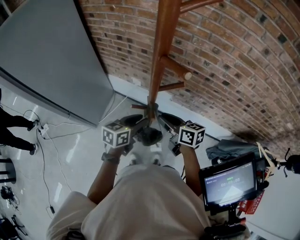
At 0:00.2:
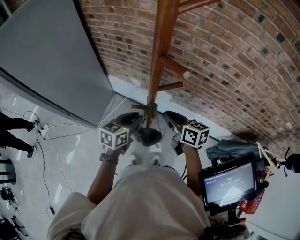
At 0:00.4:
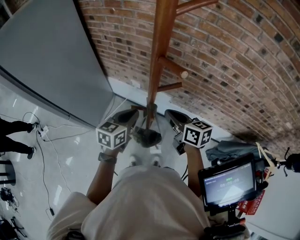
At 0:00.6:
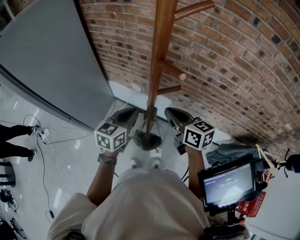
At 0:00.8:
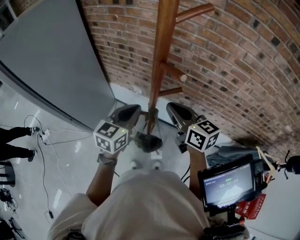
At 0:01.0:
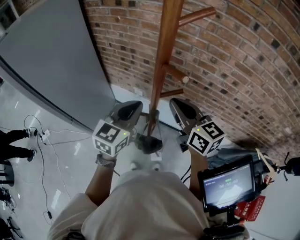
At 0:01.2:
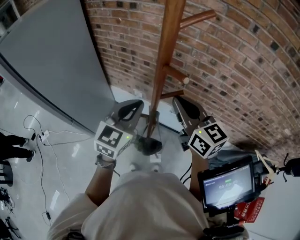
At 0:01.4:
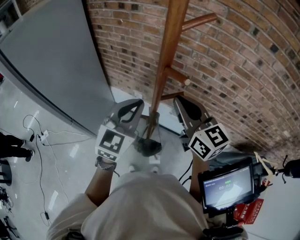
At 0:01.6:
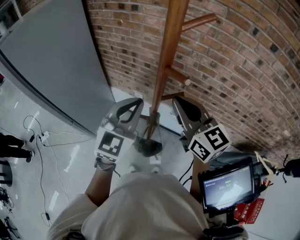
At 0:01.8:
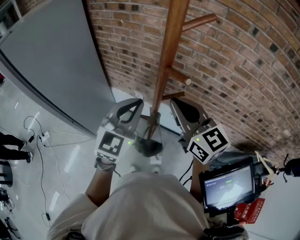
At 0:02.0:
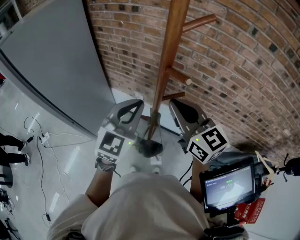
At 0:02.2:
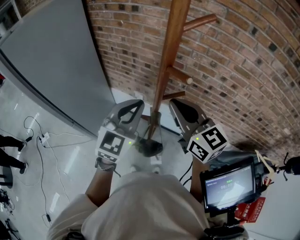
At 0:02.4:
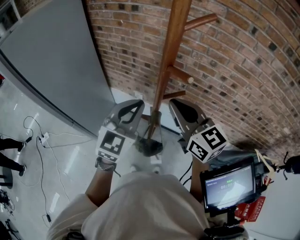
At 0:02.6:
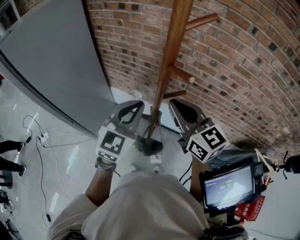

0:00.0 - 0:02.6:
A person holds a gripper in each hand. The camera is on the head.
0:00.0 - 0:01.2: The grippers both shift upward by roughly 20 cm. The right gripper changes its angle by about 40 degrees, and closes up, while the left gripper changes its angle by approximately 40 degrees, and closes its fingers.
0:01.2 - 0:02.6: The grippers make only small movements.

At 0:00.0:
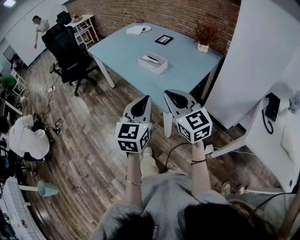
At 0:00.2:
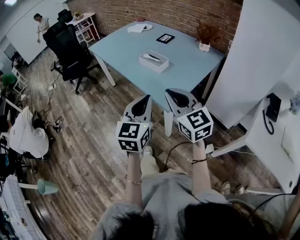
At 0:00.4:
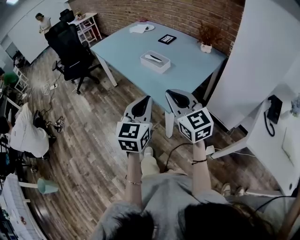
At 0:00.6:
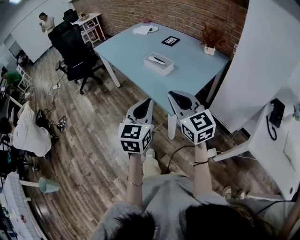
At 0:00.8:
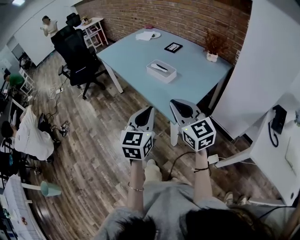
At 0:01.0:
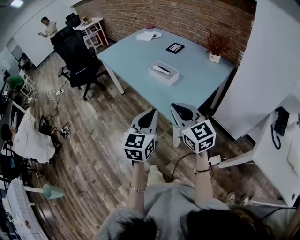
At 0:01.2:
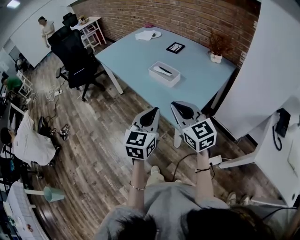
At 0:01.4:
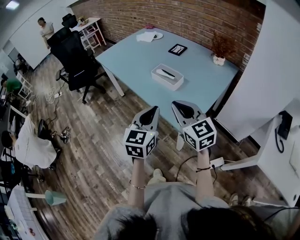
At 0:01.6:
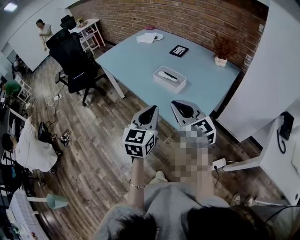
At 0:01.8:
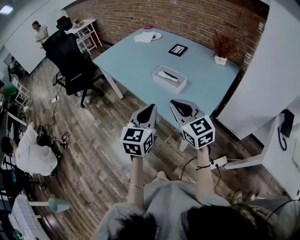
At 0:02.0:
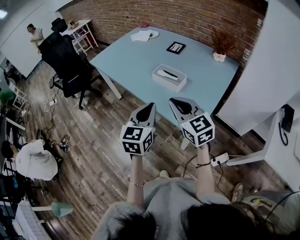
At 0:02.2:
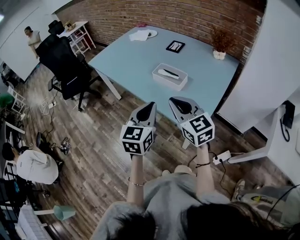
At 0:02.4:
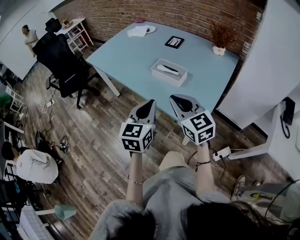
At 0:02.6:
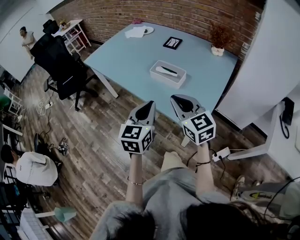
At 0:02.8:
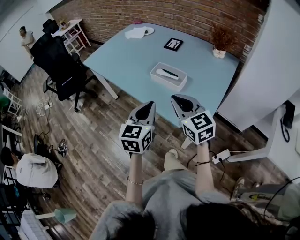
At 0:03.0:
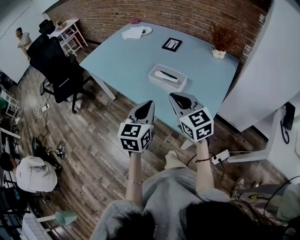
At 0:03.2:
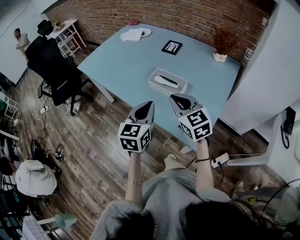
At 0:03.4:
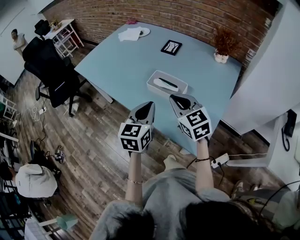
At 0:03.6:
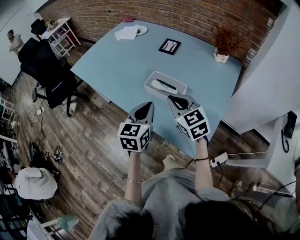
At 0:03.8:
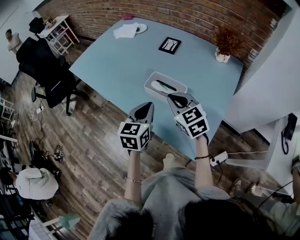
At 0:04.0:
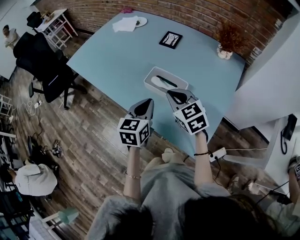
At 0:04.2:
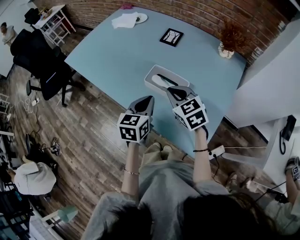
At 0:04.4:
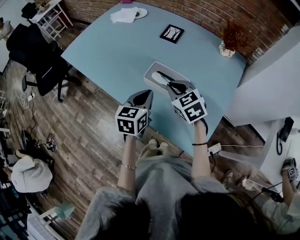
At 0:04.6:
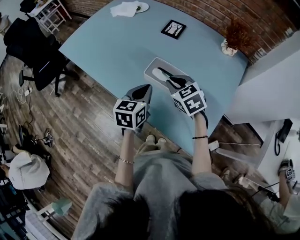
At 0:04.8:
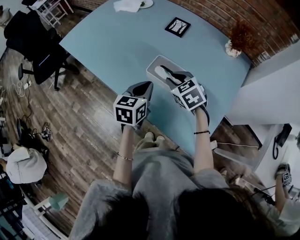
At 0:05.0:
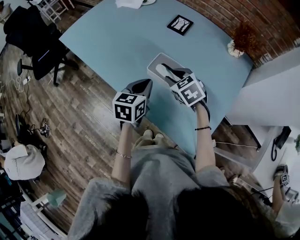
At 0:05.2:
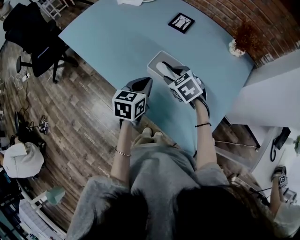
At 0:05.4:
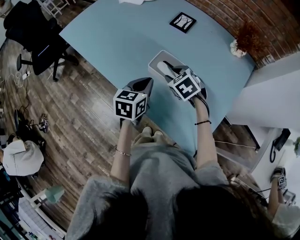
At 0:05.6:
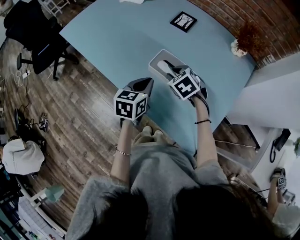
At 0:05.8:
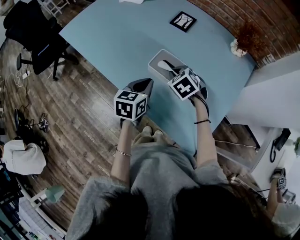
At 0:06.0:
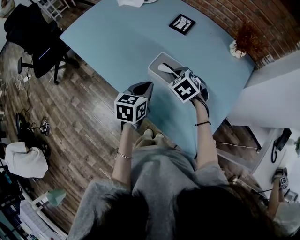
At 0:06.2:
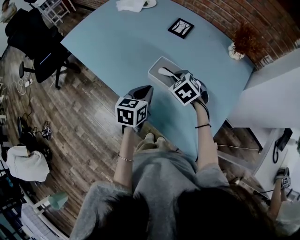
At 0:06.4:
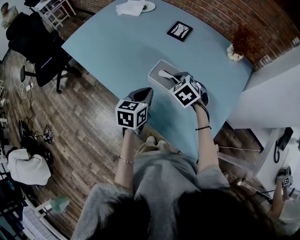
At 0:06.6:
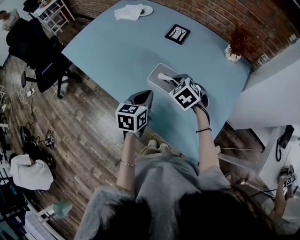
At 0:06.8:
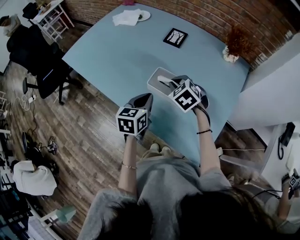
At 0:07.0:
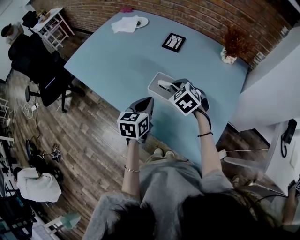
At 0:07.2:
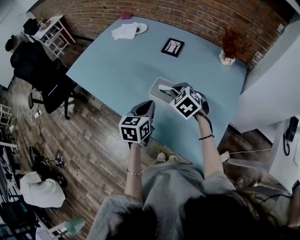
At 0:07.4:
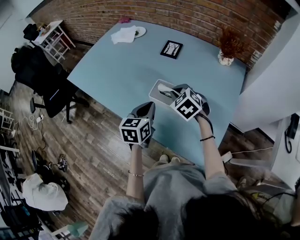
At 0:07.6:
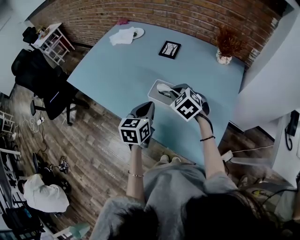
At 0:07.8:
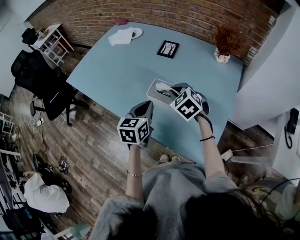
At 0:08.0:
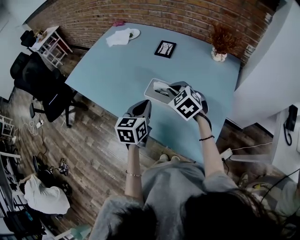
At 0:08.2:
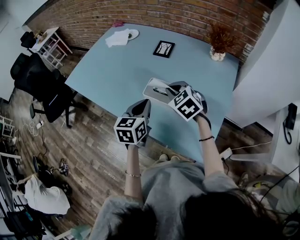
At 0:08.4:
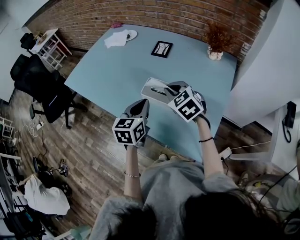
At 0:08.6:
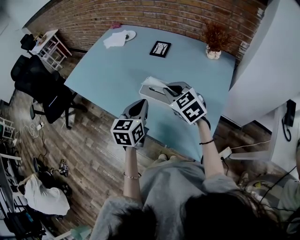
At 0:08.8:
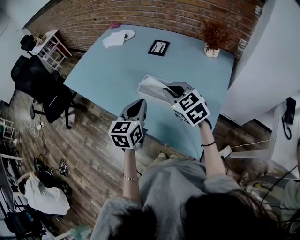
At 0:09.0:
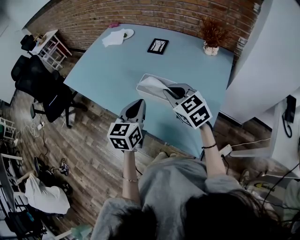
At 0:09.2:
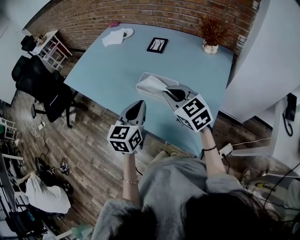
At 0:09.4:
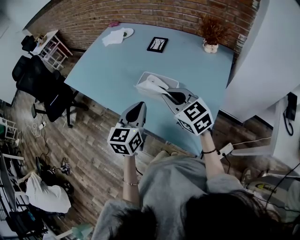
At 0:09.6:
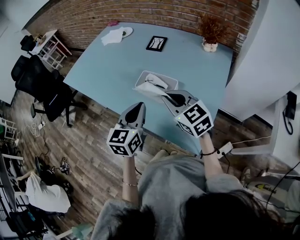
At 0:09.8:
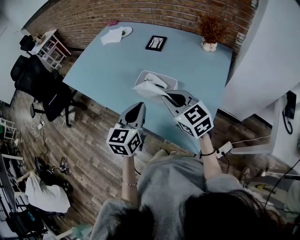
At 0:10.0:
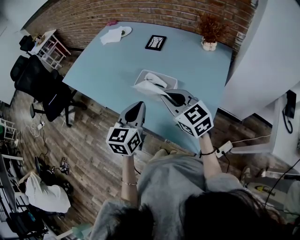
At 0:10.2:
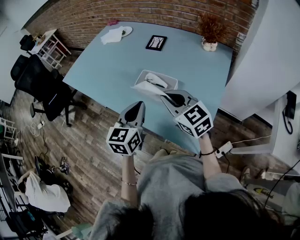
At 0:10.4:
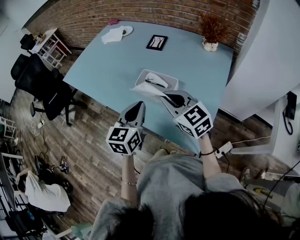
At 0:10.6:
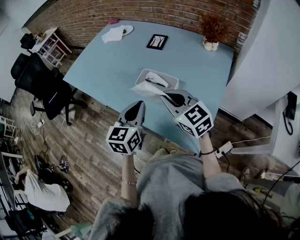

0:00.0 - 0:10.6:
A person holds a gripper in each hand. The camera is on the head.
0:00.0 - 0:01.6: Both grippers travel together forward, about 15 cm.
0:01.6 - 0:03.0: The two grippers go roughly 10 cm forward.
0:03.0 - 0:04.6: The grippers both shift forward and downward by about 20 cm. The right gripper swivels approximately 30 degrees.
0:04.6 - 0:06.0: The right gripper moves downward, some 5 cm, and opens, then closes once more.
0:06.0 - 0:07.6: The two grippers go approximately 5 cm upward.
0:07.6 - 0:09.0: The right gripper travels backward and upward by about 10 cm, and swivels roughly 20 degrees. Meanwhile the left gripper travels backward by some 5 cm.
0:09.0 - 0:10.6: There are only small adjustments of the grippers.

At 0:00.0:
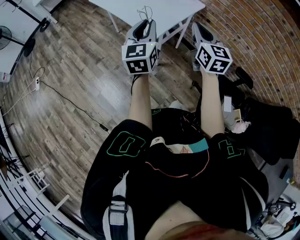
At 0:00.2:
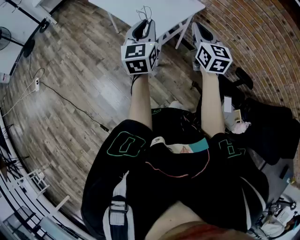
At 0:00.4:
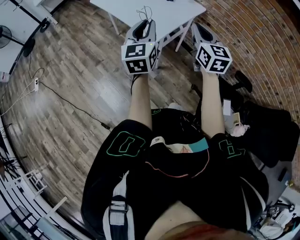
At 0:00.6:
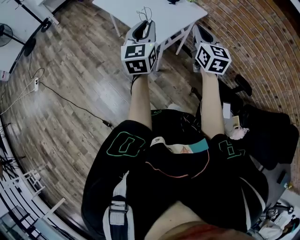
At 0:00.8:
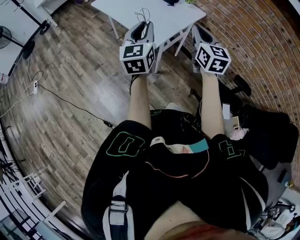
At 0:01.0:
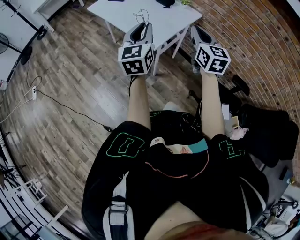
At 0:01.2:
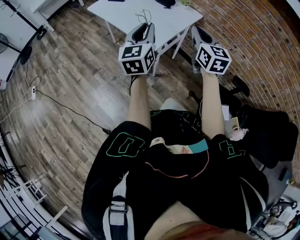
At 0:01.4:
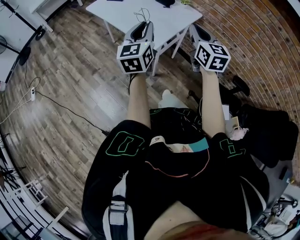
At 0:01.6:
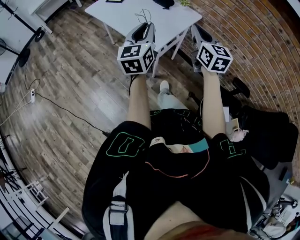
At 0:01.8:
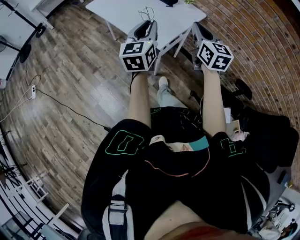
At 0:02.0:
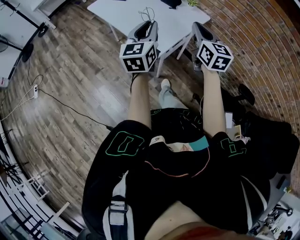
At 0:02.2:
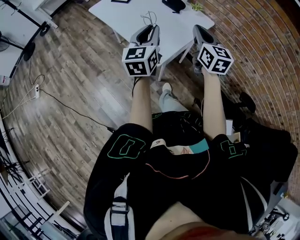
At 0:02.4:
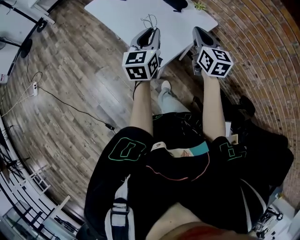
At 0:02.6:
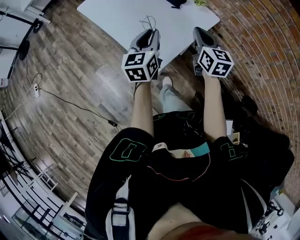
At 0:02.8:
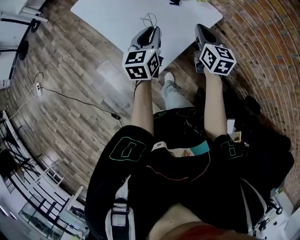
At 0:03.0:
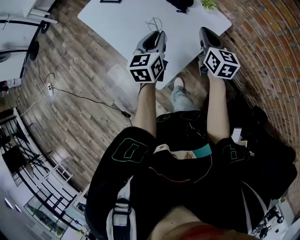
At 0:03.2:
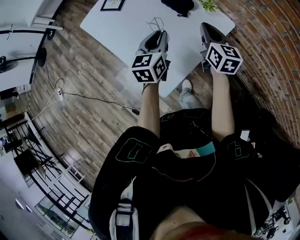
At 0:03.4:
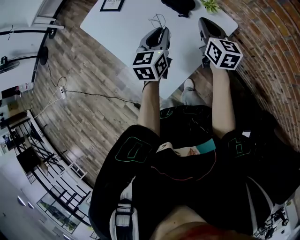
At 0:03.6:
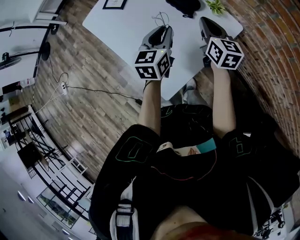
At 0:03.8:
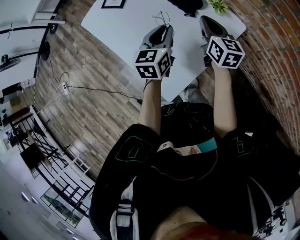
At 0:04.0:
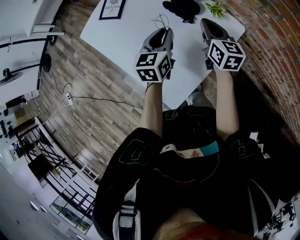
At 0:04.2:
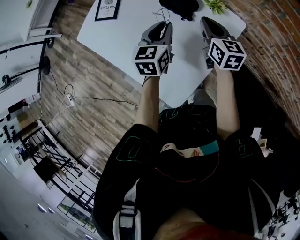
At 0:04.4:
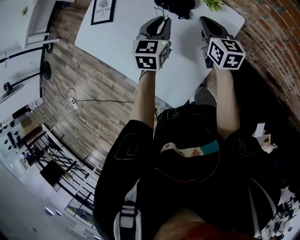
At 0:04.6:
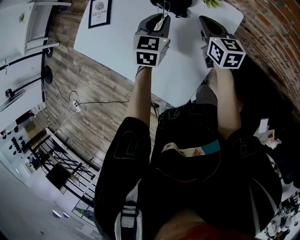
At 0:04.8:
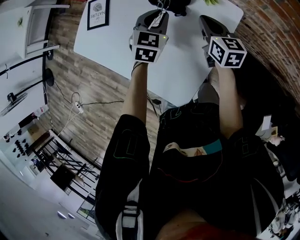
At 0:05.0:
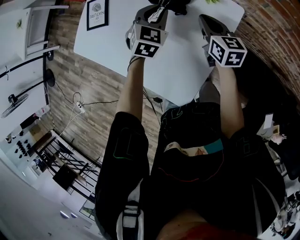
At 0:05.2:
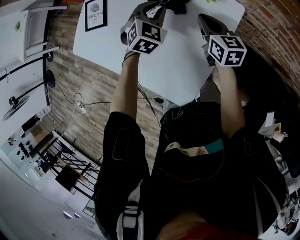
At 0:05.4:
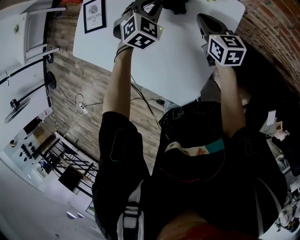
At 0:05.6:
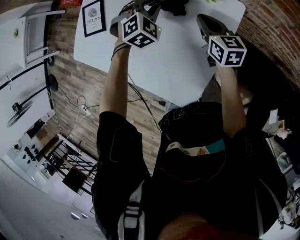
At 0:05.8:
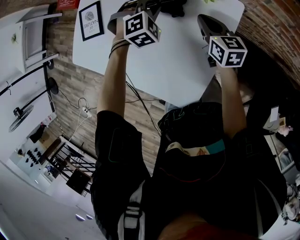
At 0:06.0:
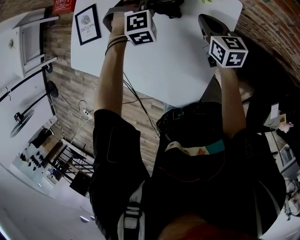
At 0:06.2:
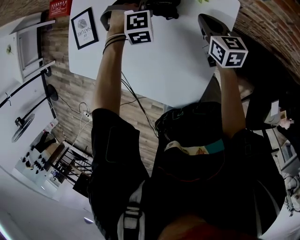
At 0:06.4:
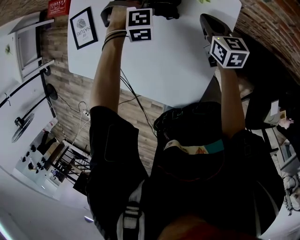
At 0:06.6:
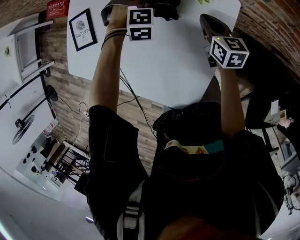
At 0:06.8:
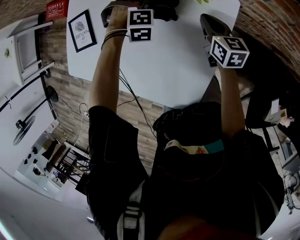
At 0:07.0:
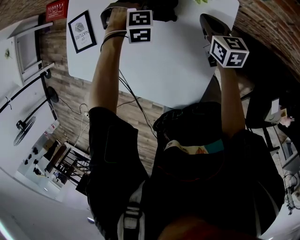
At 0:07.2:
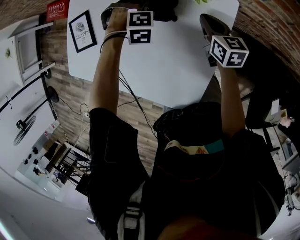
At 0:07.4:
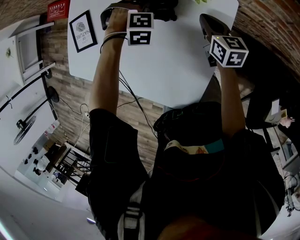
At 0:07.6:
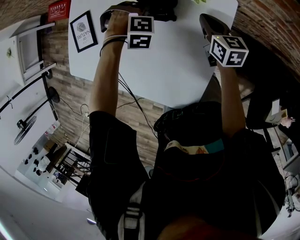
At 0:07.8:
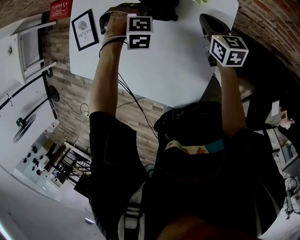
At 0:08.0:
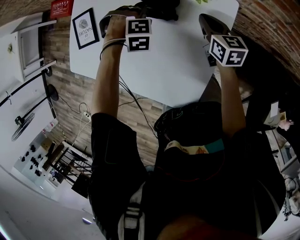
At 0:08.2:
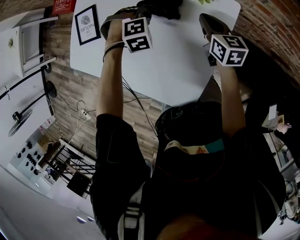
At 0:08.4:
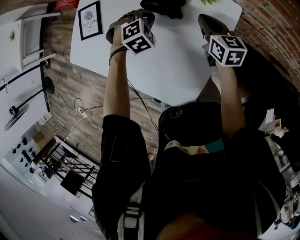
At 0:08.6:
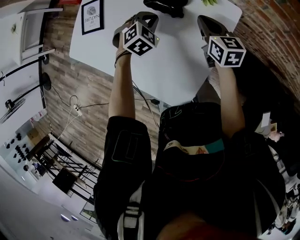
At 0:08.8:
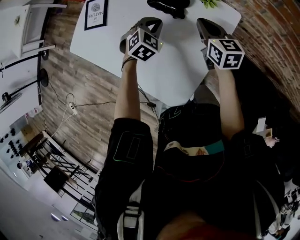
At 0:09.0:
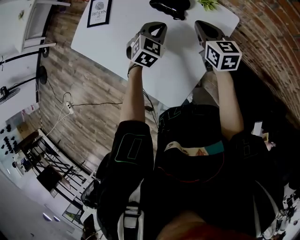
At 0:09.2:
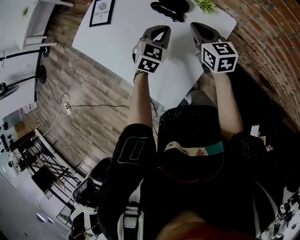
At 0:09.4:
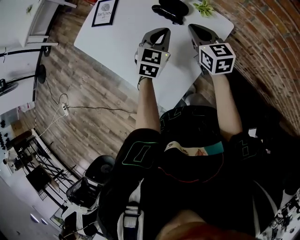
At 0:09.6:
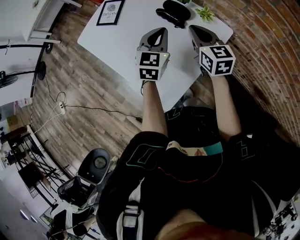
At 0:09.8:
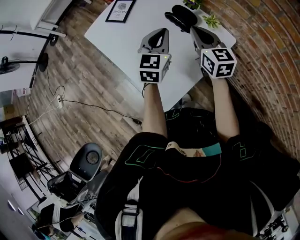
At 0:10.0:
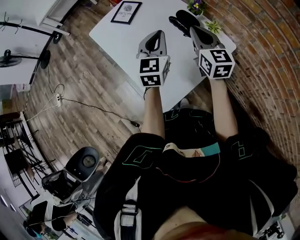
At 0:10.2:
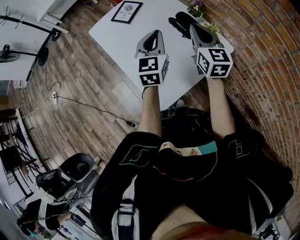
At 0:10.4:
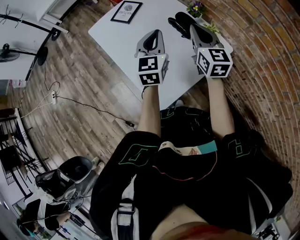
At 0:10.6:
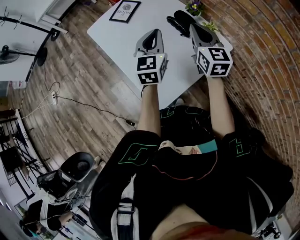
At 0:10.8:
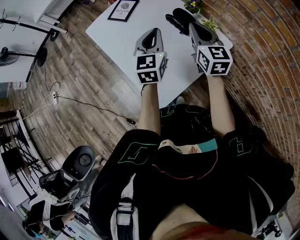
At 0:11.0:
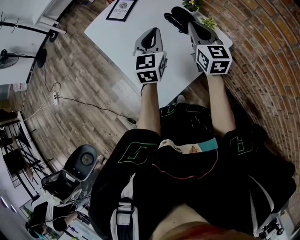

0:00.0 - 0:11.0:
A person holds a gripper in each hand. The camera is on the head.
0:00.0 - 0:01.6: Both grippers move forward, some 5 cm.
0:01.6 - 0:03.2: Both grippers move forward, some 35 cm. The left gripper changes its angle by roughly 20 degrees; the right gripper changes its angle by roughly 20 degrees.
0:03.2 - 0:04.8: The right gripper is displaced downward and forward by about 10 cm. The left gripper is displaced forward and downward by about 15 cm, and swivels approximately 40 degrees.
0:04.8 - 0:06.2: The left gripper travels downward and forward by about 15 cm, and twists roughly 70 degrees clockwise, seen from behind. Meanwhile the right gripper changes place by some 5 cm.
0:06.2 - 0:07.8: The left gripper ends up about 5 cm from where it was.
0:07.8 - 0:09.4: The grippers both shift upward by some 15 cm. The left gripper twists roughly 80 degrees counterclockwise, seen from behind. Meanwhile the right gripper changes its angle by about 30 degrees.
0:09.4 - 0:11.0: The right gripper shifts about 10 cm upward, while the left gripper heads upward and to the left, covering approximately 15 cm, and rotates about 30 degrees.
